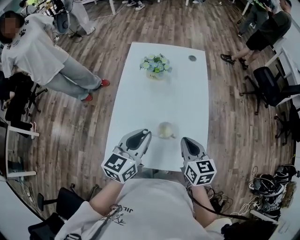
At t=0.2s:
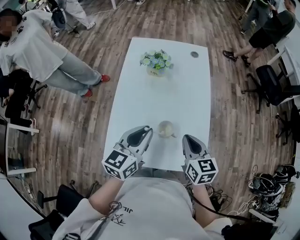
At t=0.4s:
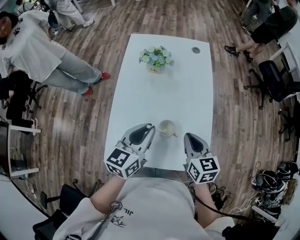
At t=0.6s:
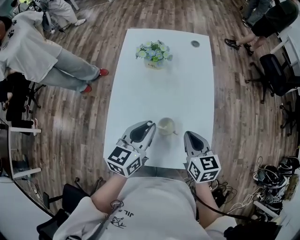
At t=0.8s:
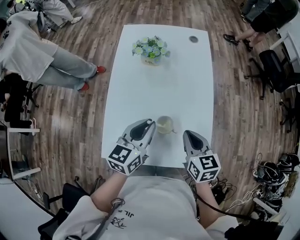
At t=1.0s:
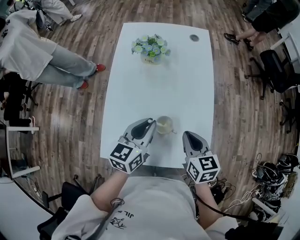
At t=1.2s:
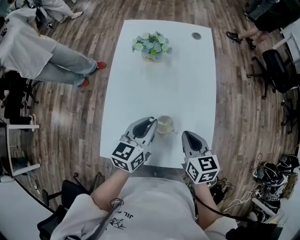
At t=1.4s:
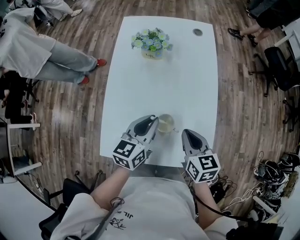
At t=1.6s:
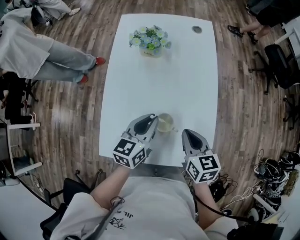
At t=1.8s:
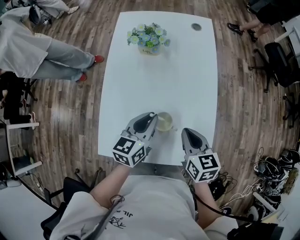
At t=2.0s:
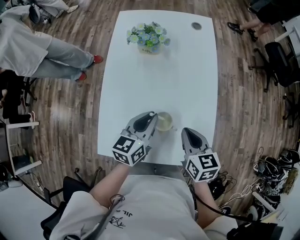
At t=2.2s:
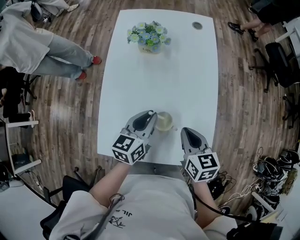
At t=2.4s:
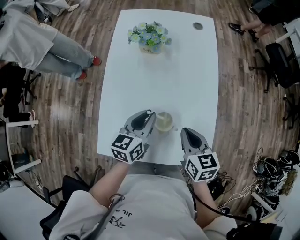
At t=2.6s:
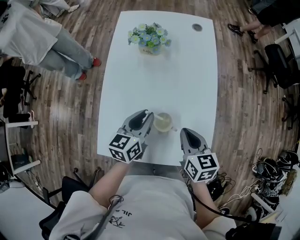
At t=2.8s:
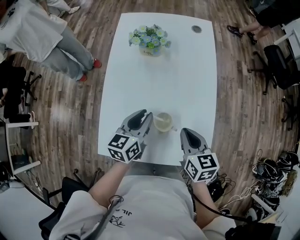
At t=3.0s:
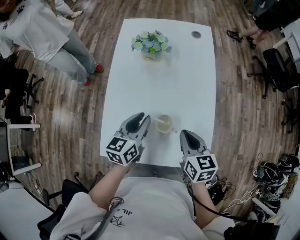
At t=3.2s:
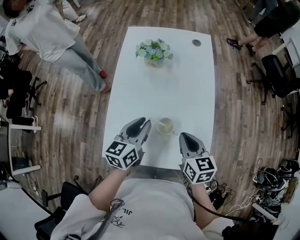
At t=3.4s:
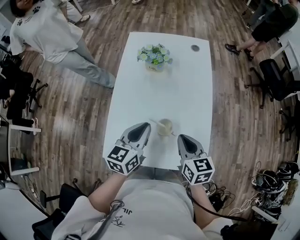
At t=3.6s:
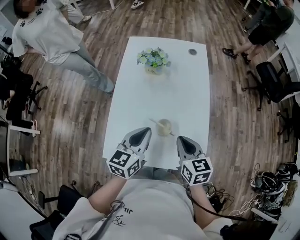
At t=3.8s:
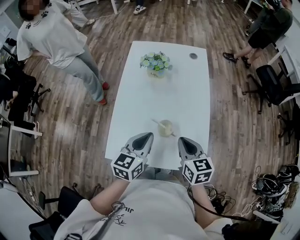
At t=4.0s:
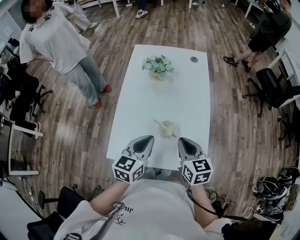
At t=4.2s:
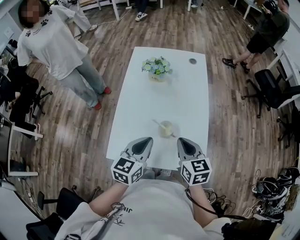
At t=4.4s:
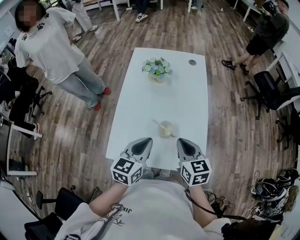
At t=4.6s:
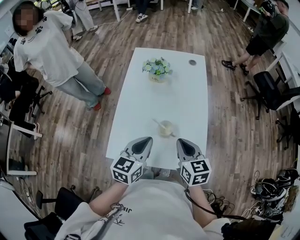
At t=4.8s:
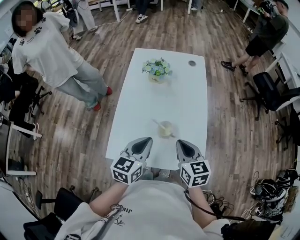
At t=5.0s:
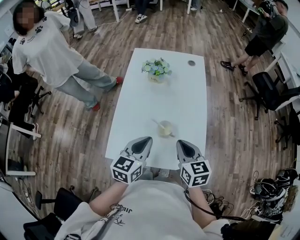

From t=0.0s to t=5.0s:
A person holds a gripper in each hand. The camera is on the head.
From t=0.0s to t=1.6s: The left gripper is displaced downward and forward by about 15 cm. The right gripper shifts some 5 cm downward.
From t=1.6s to t=3.4s: The left gripper is displaced upward by roughly 5 cm.
From t=3.4s to t=5.0s: The left gripper is displaced backward by roughly 5 cm; the right gripper moves roughly 5 cm.

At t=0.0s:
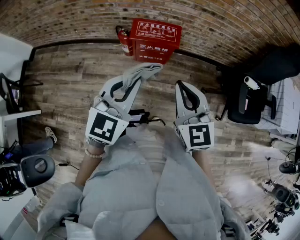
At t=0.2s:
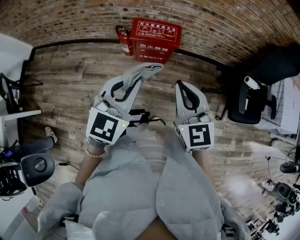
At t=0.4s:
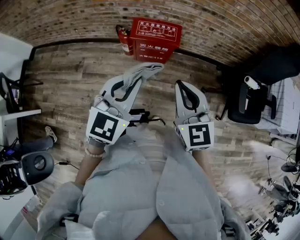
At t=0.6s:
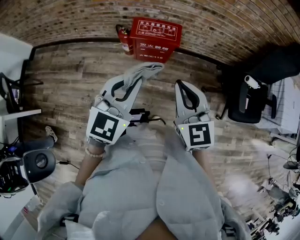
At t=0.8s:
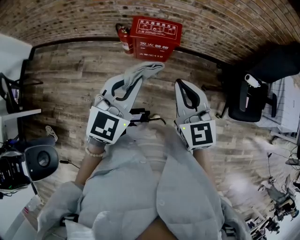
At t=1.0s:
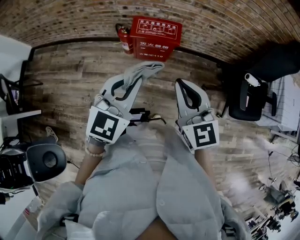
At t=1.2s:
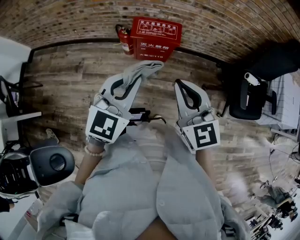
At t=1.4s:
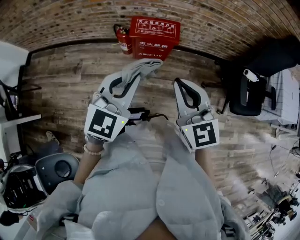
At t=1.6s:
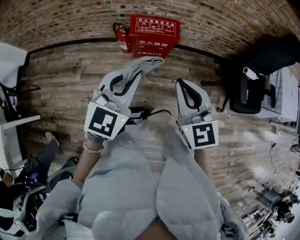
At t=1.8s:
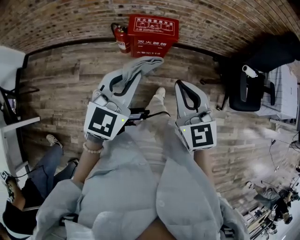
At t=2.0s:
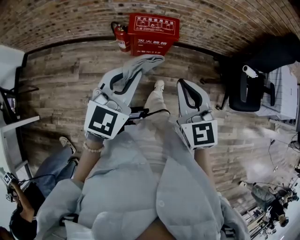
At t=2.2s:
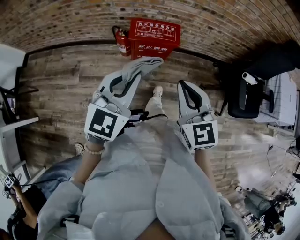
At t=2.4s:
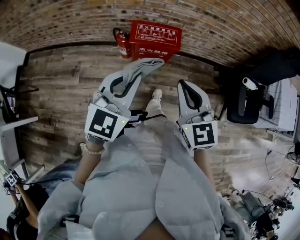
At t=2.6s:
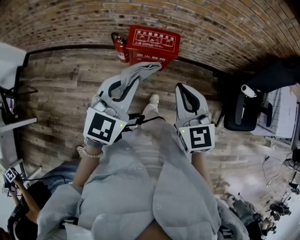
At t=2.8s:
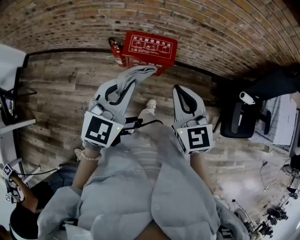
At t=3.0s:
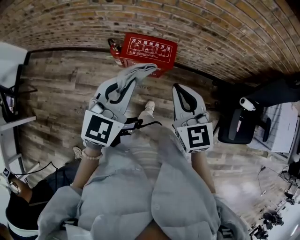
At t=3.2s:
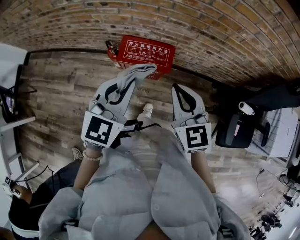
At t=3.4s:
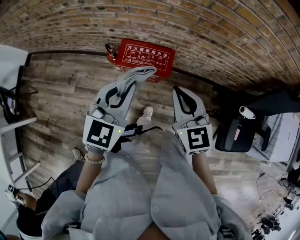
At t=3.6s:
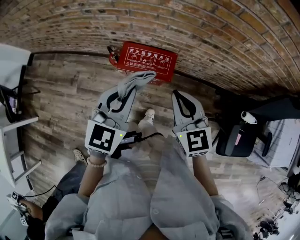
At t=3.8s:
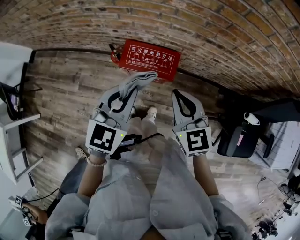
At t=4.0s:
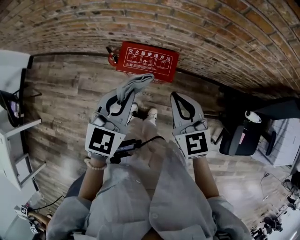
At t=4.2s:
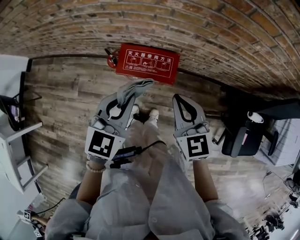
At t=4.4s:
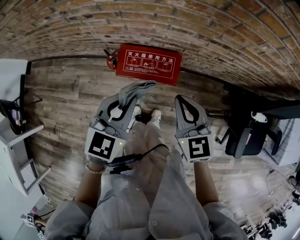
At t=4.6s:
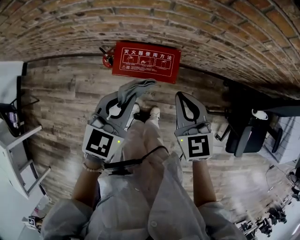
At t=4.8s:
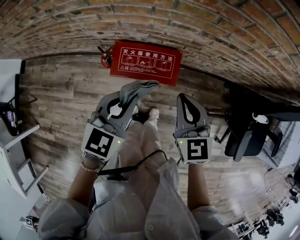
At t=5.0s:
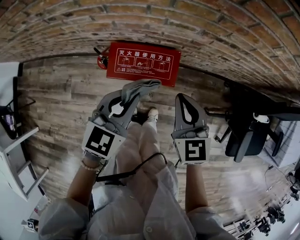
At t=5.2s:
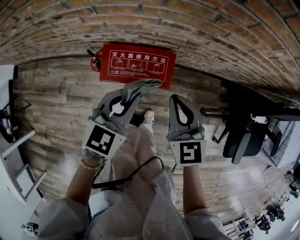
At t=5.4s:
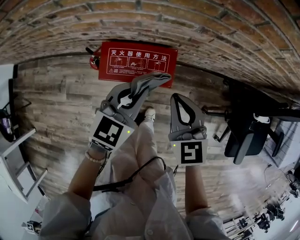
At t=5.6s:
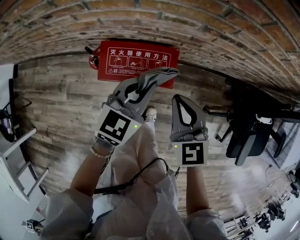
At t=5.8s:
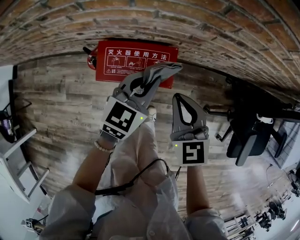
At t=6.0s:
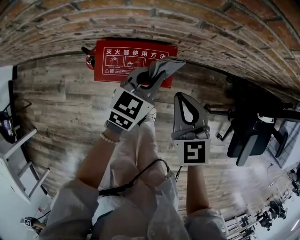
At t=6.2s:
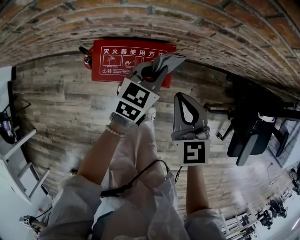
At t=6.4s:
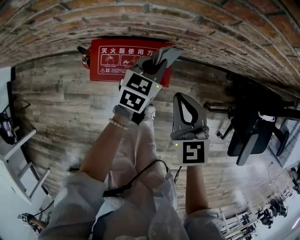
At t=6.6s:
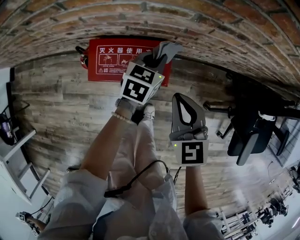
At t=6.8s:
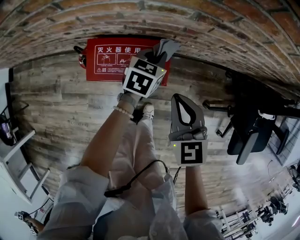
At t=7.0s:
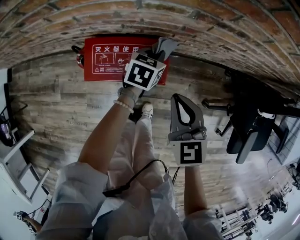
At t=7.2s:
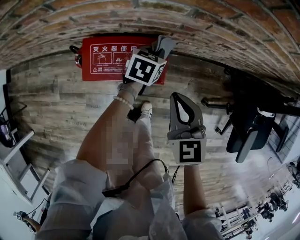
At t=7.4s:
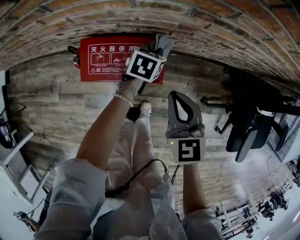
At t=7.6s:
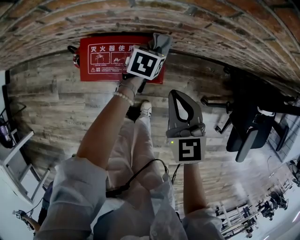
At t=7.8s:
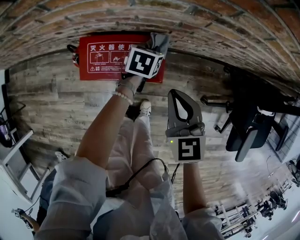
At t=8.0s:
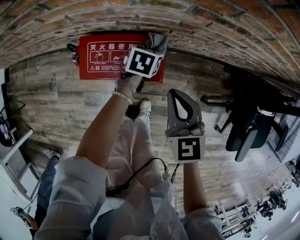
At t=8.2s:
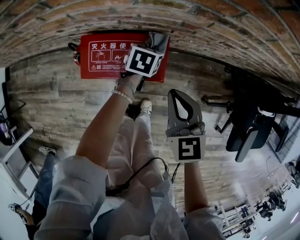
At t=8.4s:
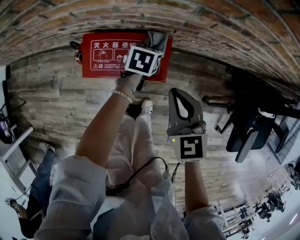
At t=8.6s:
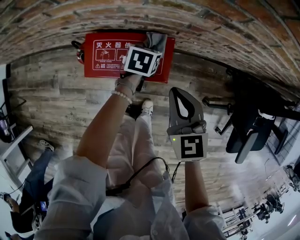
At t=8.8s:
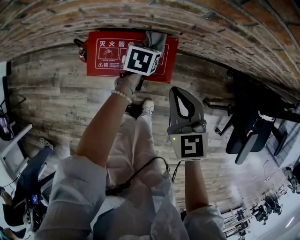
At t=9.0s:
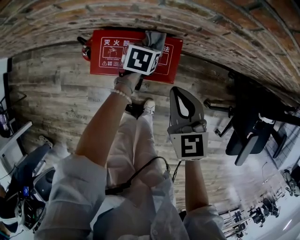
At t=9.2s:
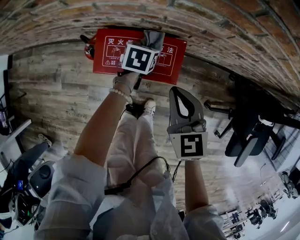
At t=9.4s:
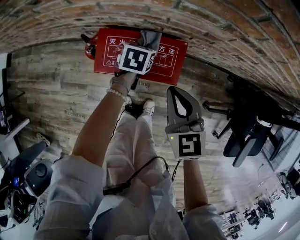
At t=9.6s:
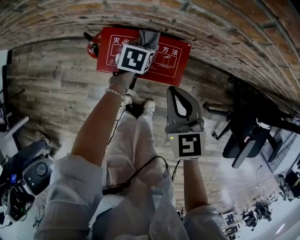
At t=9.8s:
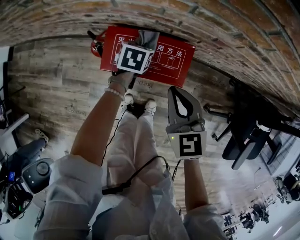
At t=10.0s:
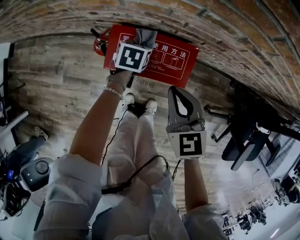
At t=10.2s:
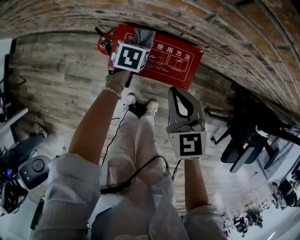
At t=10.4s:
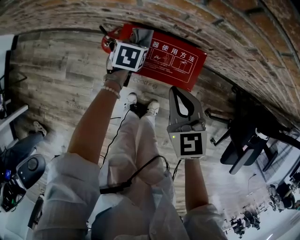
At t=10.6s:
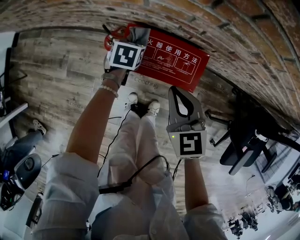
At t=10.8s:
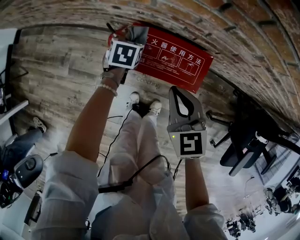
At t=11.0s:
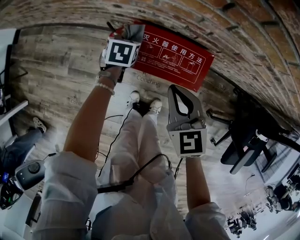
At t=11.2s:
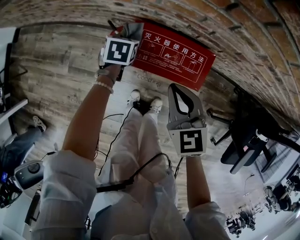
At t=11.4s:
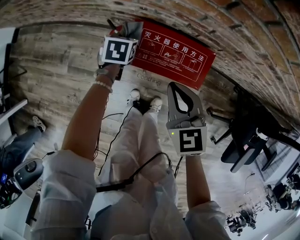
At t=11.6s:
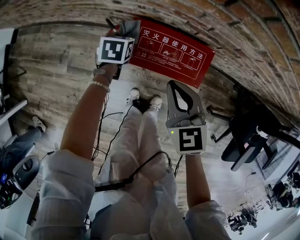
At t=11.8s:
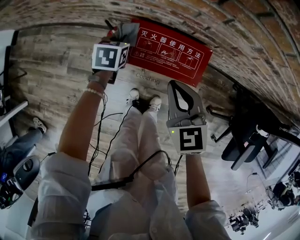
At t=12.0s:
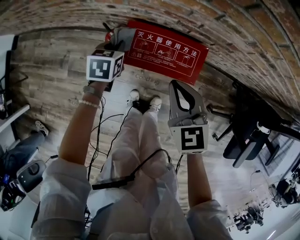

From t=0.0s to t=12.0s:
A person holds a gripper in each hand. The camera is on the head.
From t=0.0s to t=1.6s: The grippers stay close to where they were, moving slightly.
From t=1.6s to t=3.0s: Both grippers travel together forward, about 20 cm.
From t=3.0s to t=4.4s: The two grippers go roughly 15 cm forward and downward.
From t=4.4s to t=6.0s: The left gripper heads downward, forward and to the right, covering about 25 cm, while the right gripper is displaced downward and forward by approximately 15 cm.
From t=6.0s to t=7.6s: The left gripper travels downward and forward by some 20 cm, and changes its angle by approximately 30 degrees.
From t=7.6s to t=9.0s: The left gripper goes some 10 cm to the left.
From t=9.0s to t=10.4s: The left gripper is displaced to the left by approximately 15 cm. Meanwhile the right gripper shifts roughly 10 cm to the left.
From t=10.4s to t=12.0s: The left gripper moves to the left, roughly 10 cm.

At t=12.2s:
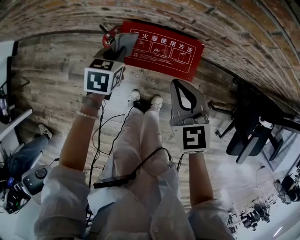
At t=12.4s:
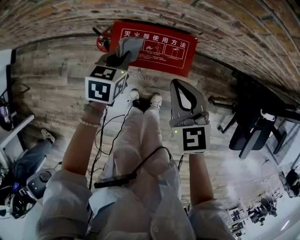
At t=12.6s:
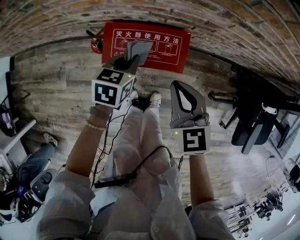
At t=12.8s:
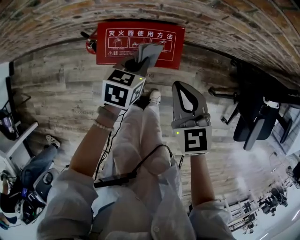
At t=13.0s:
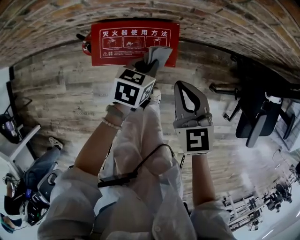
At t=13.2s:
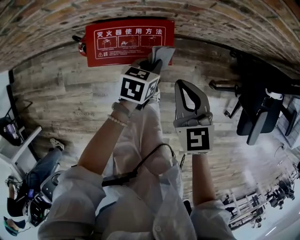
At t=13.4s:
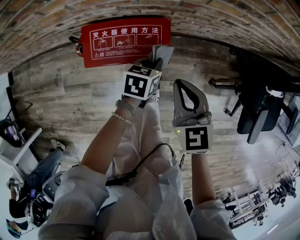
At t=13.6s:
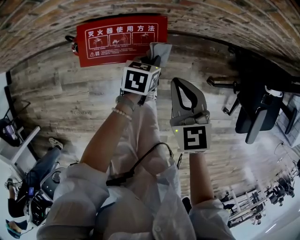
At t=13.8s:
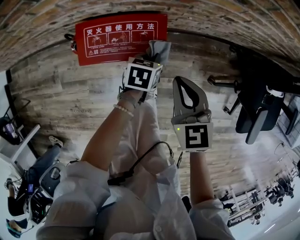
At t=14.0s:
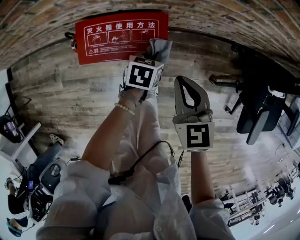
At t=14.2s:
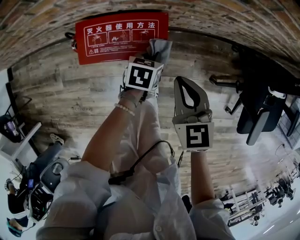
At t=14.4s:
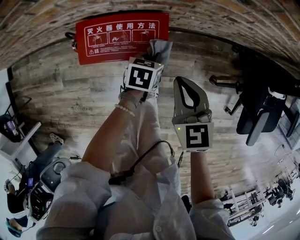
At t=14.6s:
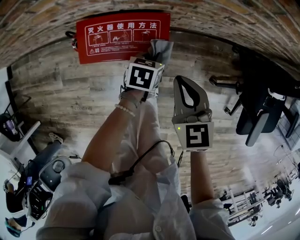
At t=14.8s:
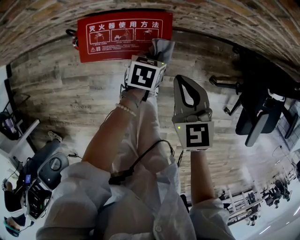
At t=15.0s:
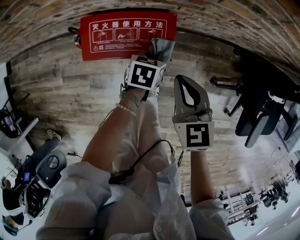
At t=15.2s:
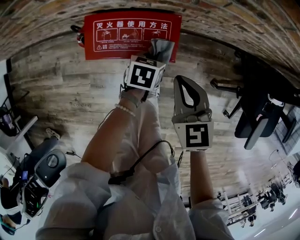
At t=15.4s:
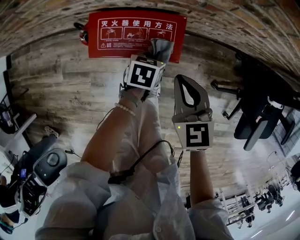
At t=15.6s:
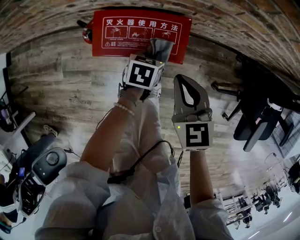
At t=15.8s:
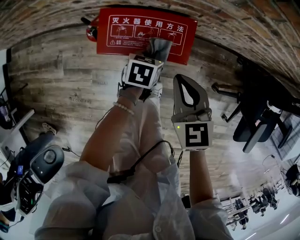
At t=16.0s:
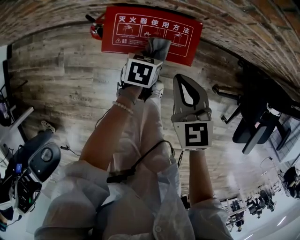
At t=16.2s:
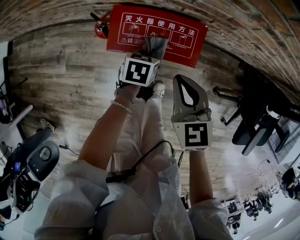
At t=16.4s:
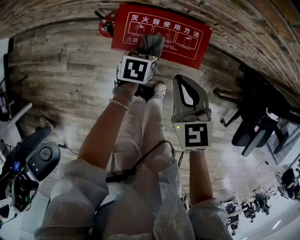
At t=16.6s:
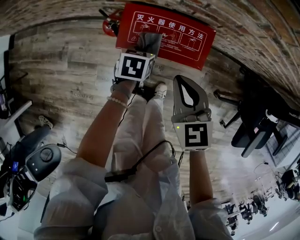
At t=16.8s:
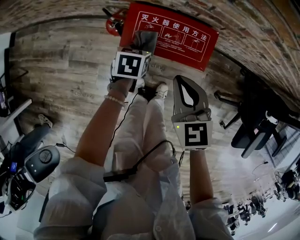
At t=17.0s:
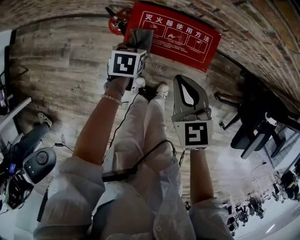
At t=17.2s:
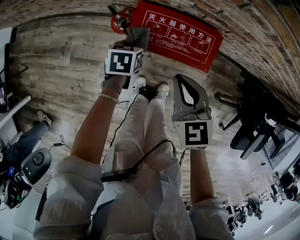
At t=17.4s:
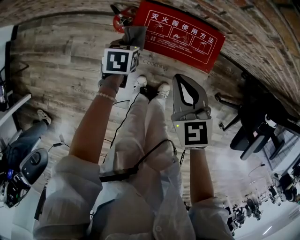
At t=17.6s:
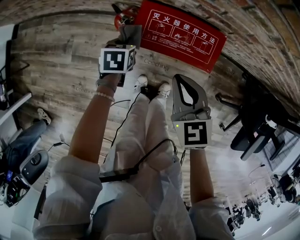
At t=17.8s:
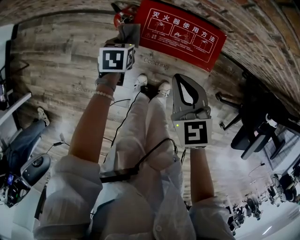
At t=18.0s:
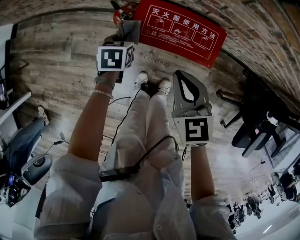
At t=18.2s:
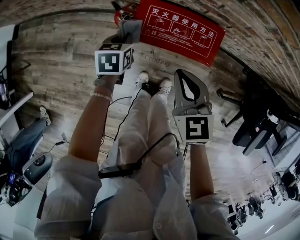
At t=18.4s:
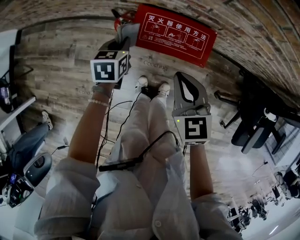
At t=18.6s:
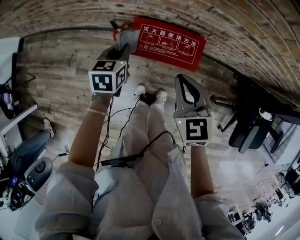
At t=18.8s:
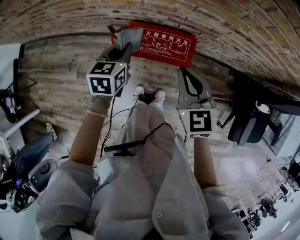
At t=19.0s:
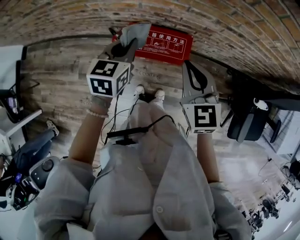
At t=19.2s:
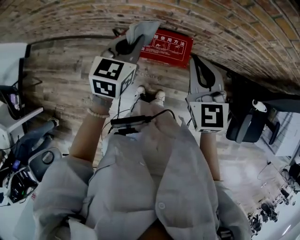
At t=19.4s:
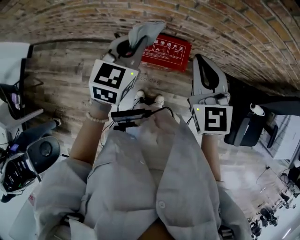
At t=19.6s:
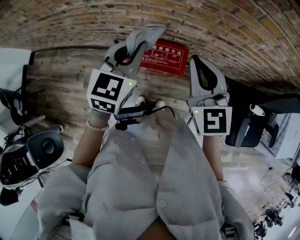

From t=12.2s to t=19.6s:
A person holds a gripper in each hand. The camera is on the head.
From t=12.2s to t=13.6s: The right gripper shifts some 15 cm to the right. The left gripper goes approximately 30 cm to the right, and rotates approximately 20 degrees.
From t=13.6s to t=15.2s: The grippers stay close to where they were, moving slightly.
From t=15.2s to t=16.6s: Both grippers travel together to the left, approximately 15 cm.
From t=16.6s to t=18.2s: The left gripper goes about 10 cm to the left.
From t=18.2s to t=19.6s: The two grippers go roughly 35 cm upward. The right gripper rotates roughly 30 degrees, while the left gripper tips its fingers upward by about 30 degrees.
